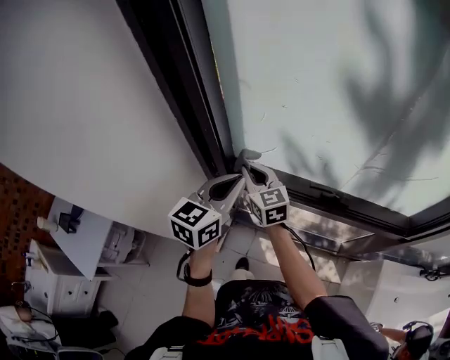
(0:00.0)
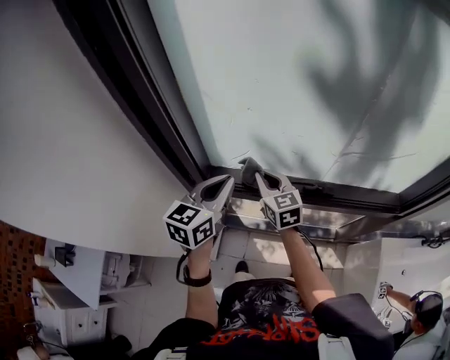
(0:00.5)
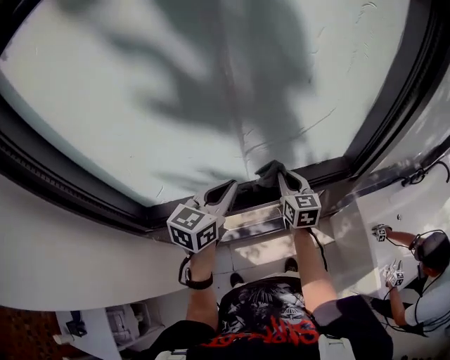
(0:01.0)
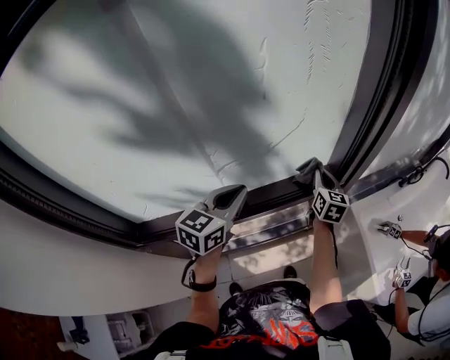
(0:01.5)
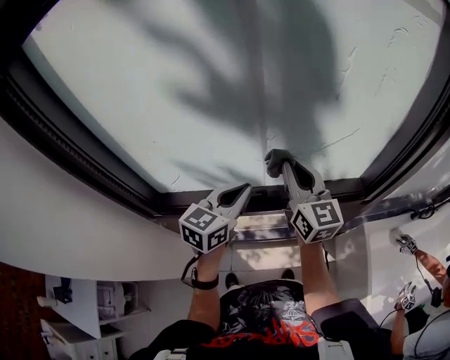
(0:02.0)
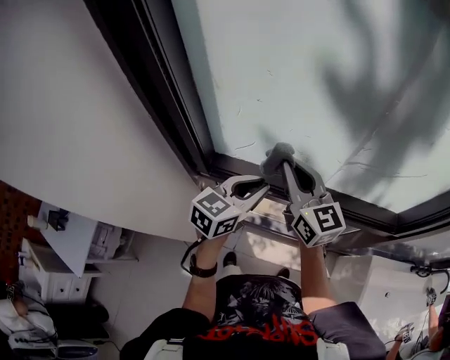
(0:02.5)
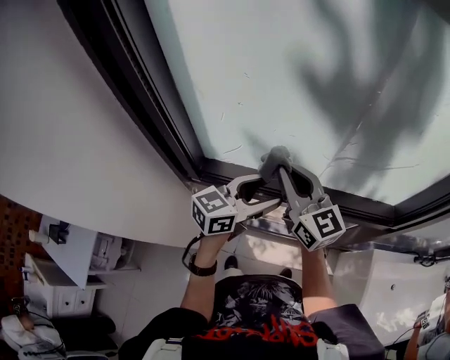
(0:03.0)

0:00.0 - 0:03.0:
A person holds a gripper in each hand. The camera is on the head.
0:00.0 - 0:01.5: The left gripper ends up about 40 cm from where it was, and swivels roughly 40 degrees. The right gripper moves some 70 cm, and swivels roughly 60 degrees.
0:01.5 - 0:03.0: The right gripper changes place by approximately 50 cm, and swivels roughly 60 degrees. The left gripper changes place by approximately 20 cm, and opens up.

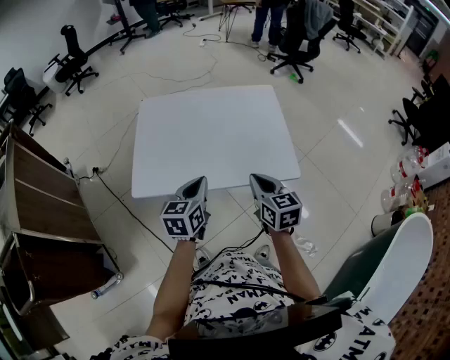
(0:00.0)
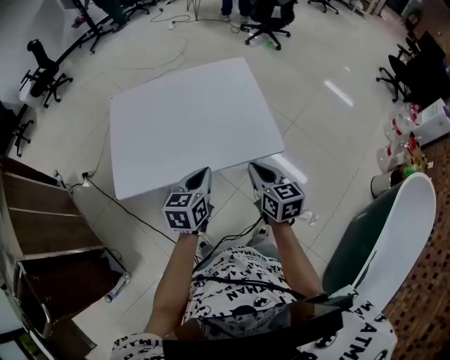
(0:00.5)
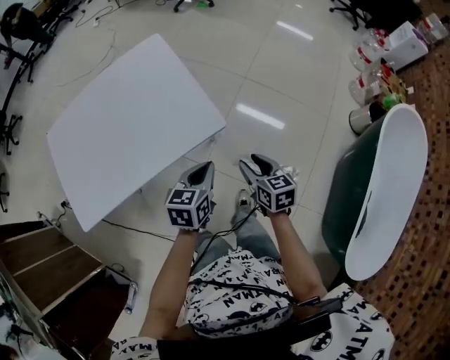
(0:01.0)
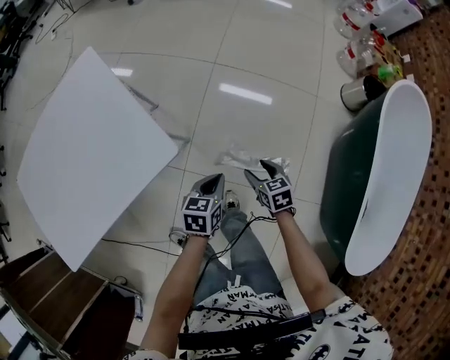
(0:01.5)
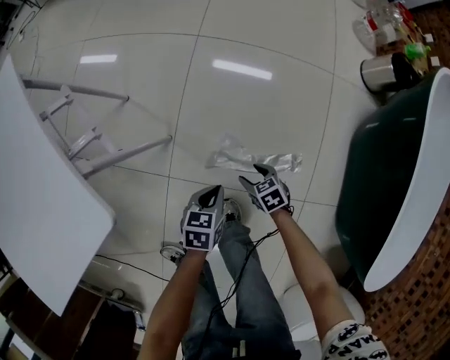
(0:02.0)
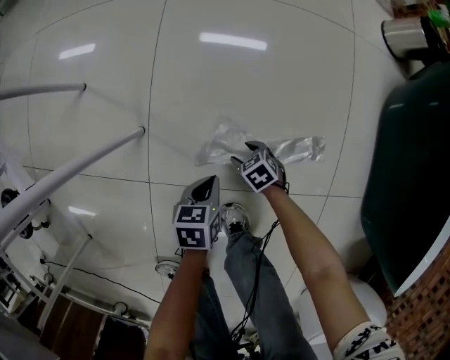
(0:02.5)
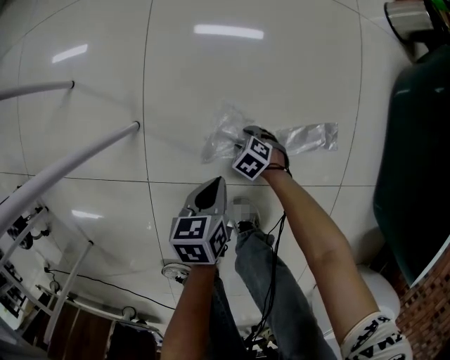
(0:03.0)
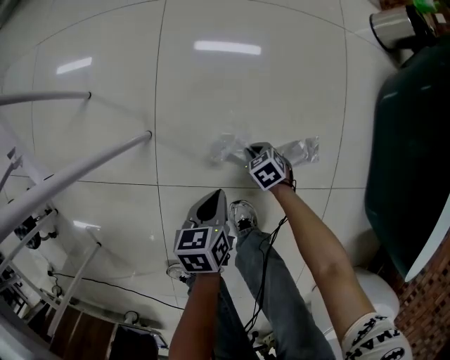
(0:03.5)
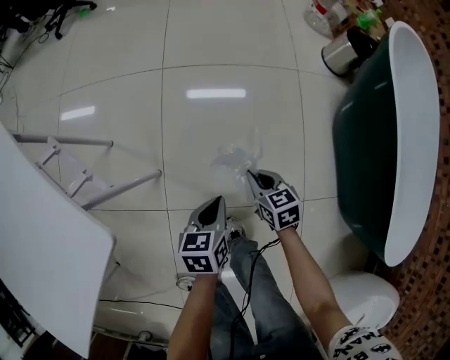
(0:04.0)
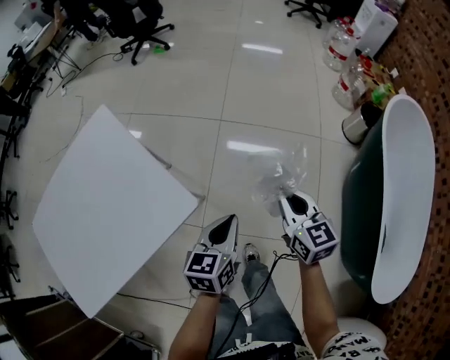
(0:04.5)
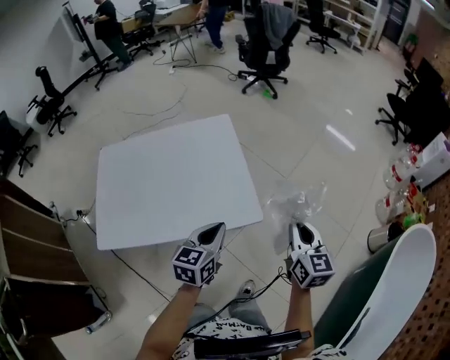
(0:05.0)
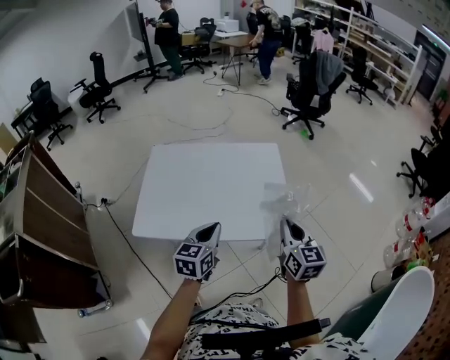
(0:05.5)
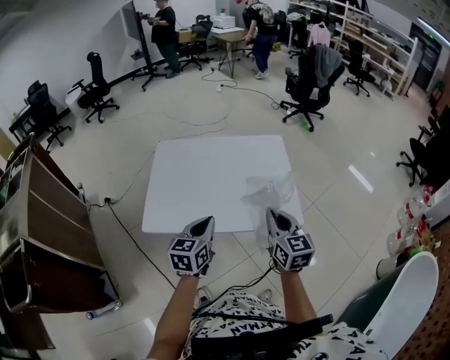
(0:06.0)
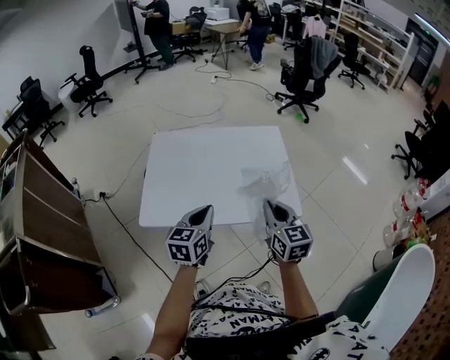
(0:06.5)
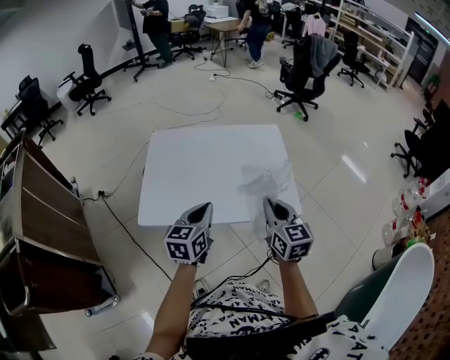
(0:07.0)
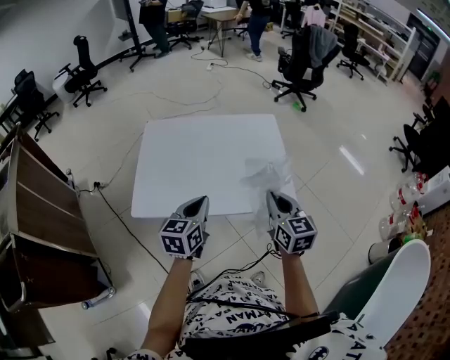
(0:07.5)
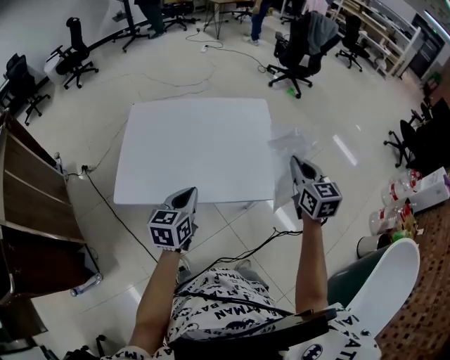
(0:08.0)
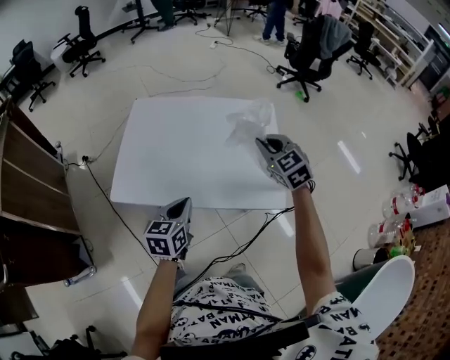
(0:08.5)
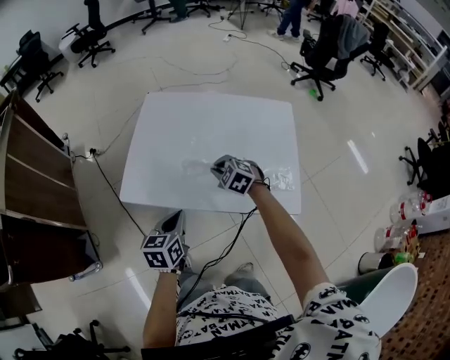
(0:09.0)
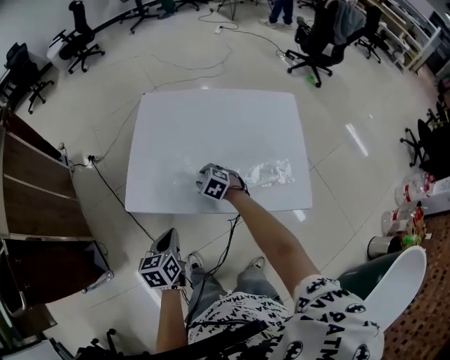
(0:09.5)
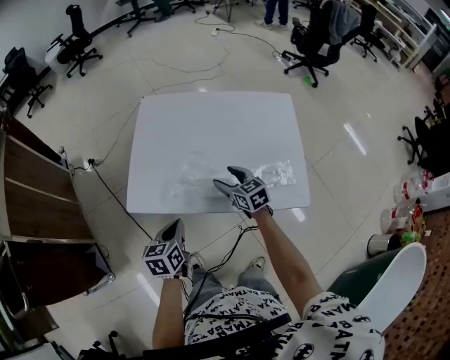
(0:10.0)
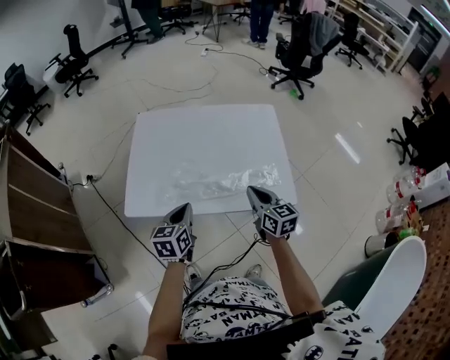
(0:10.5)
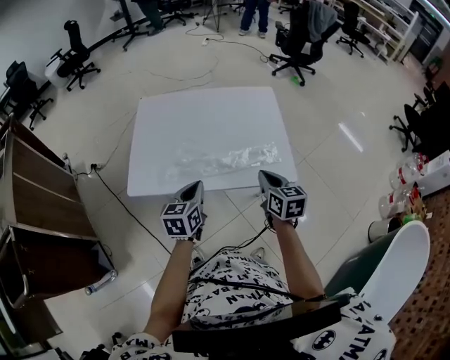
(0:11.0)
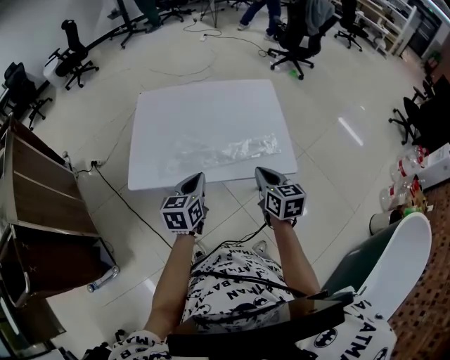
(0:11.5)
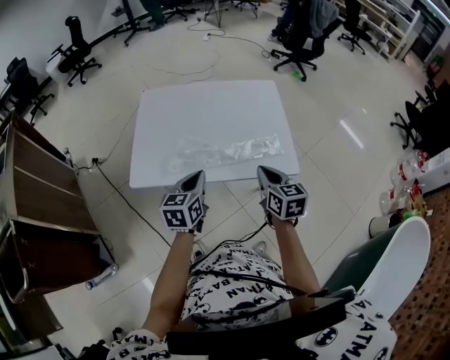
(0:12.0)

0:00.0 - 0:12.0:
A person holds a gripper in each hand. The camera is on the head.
0:00.0 - 0:02.0: The pair of grippers is taken about 50 cm. The two grippers go some 60 cm downward. The right gripper angles its fingers downward, by approximately 40 degrees, and opens its fingers. The left gripper tips its fingers downward by some 30 degrees.
0:02.0 - 0:04.0: The left gripper goes downward and returns, some 25 cm each way. The right gripper goes downward and returns, roughly 35 cm each way, swivels approximately 30 degrees, and closes.
0:04.0 - 0:06.0: The two grippers travel together, some 50 cm. The right gripper travels upward by about 60 cm, and tilts its fingers roughly 30 degrees upward, while the left gripper changes its angle by approximately 60 degrees.
0:06.0 - 0:08.0: The right gripper shifts approximately 15 cm to the right and forward.
0:08.0 - 0:10.0: The right gripper changes place by approximately 40 cm, changes its angle by about 30 degrees, and opens. The left gripper moves some 20 cm, and turns by some 20 degrees.
0:10.0 - 0:12.0: The right gripper heads backward, upward and to the right, covering approximately 25 cm, turns by some 30 degrees, and closes; the left gripper heads to the right and upward, covering some 15 cm.

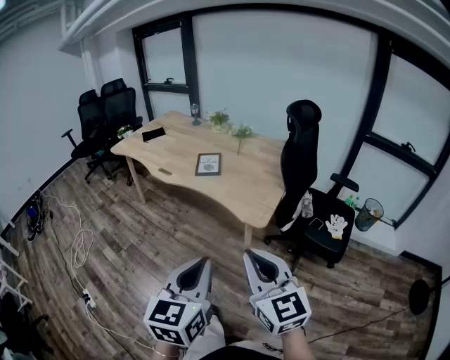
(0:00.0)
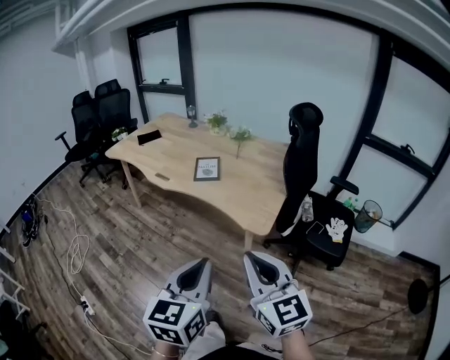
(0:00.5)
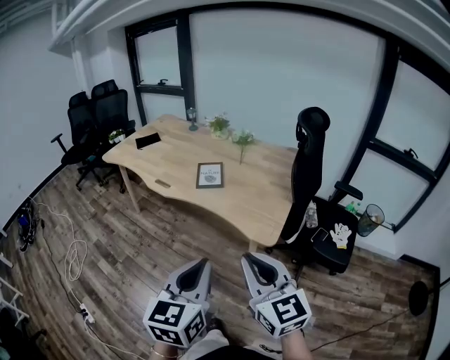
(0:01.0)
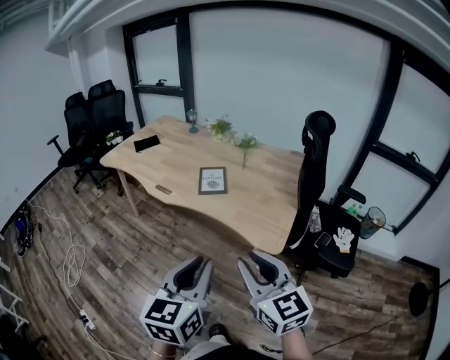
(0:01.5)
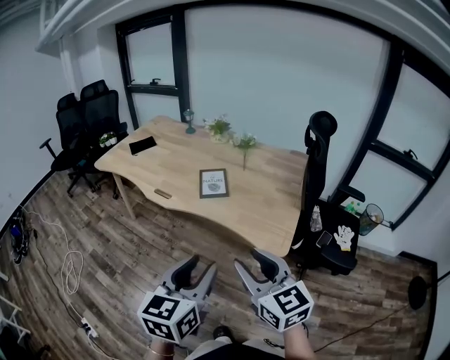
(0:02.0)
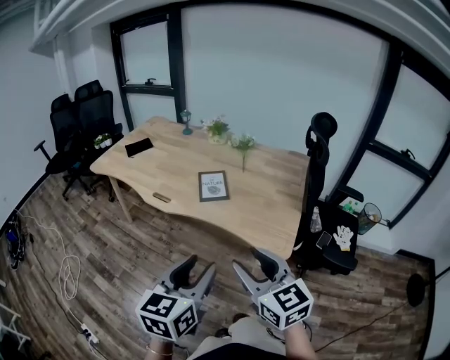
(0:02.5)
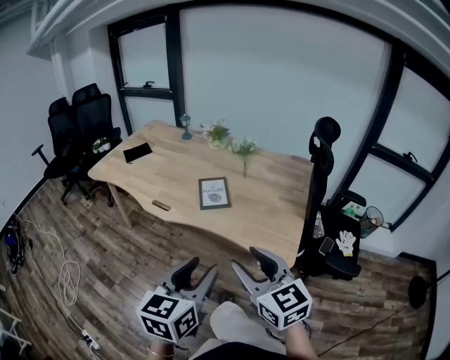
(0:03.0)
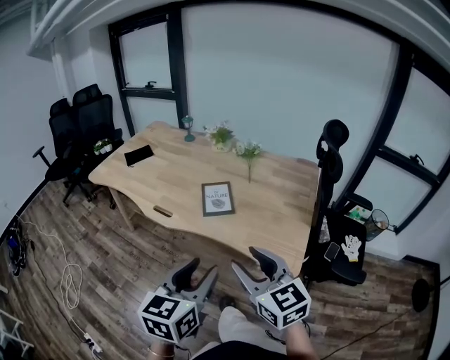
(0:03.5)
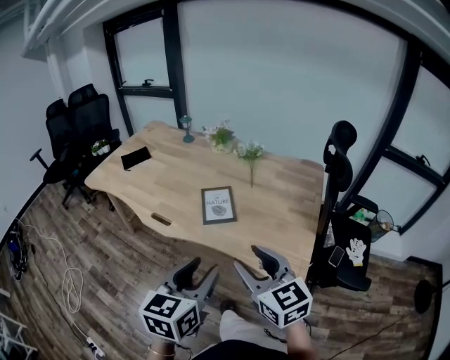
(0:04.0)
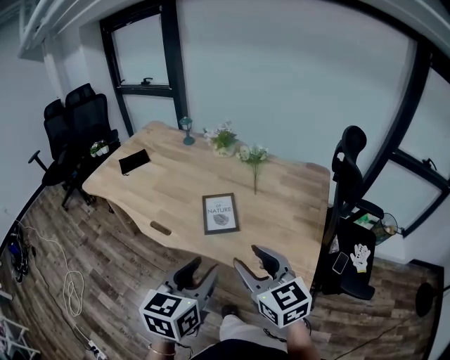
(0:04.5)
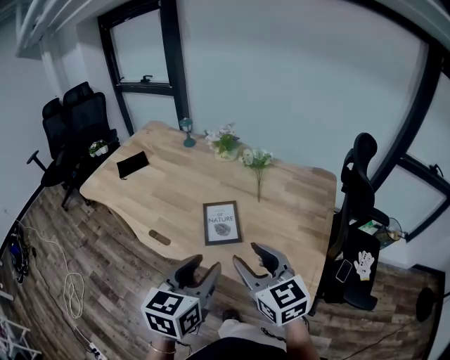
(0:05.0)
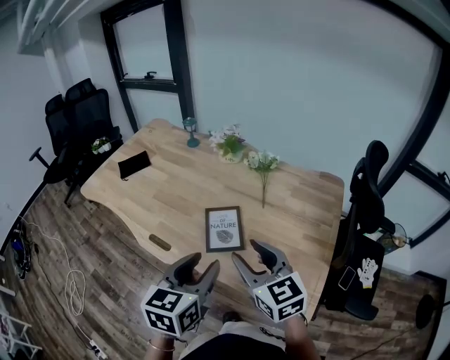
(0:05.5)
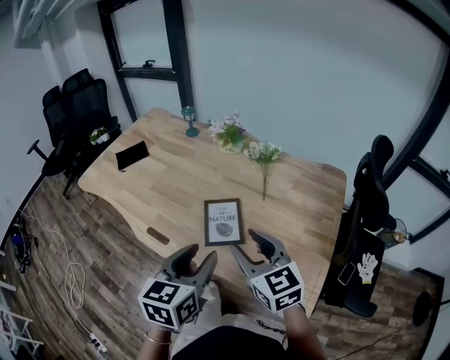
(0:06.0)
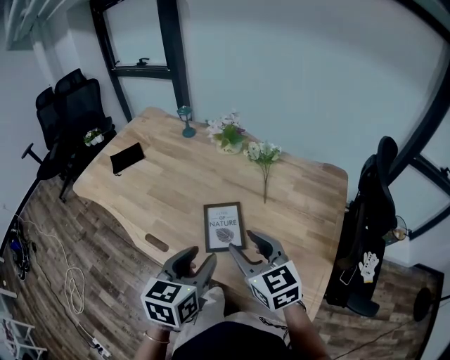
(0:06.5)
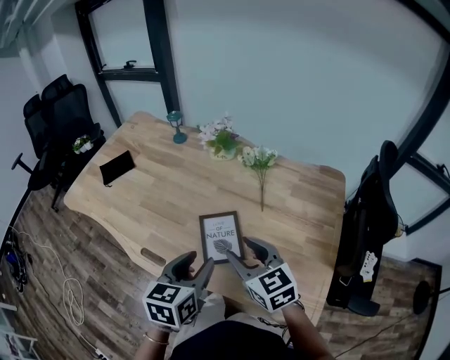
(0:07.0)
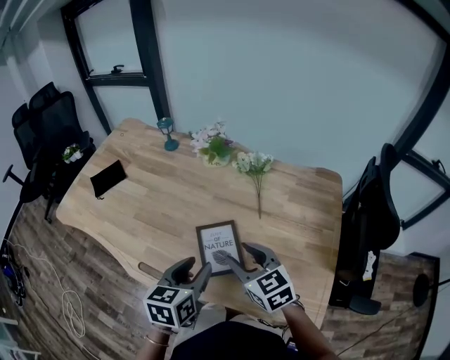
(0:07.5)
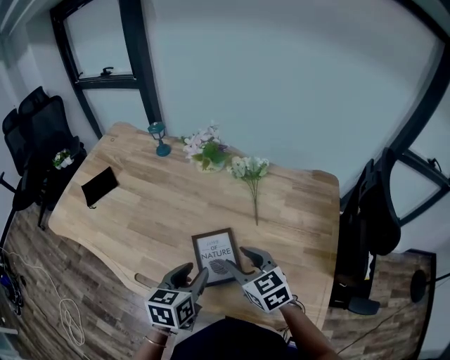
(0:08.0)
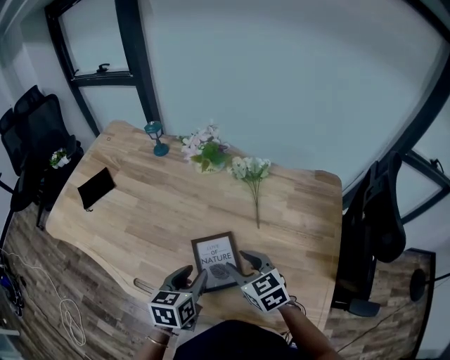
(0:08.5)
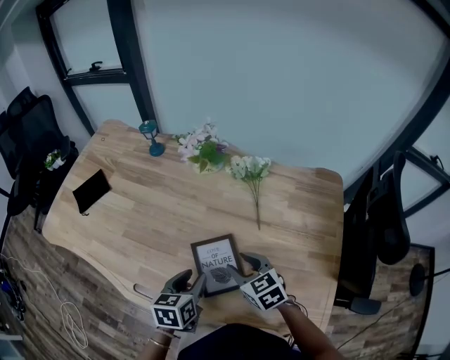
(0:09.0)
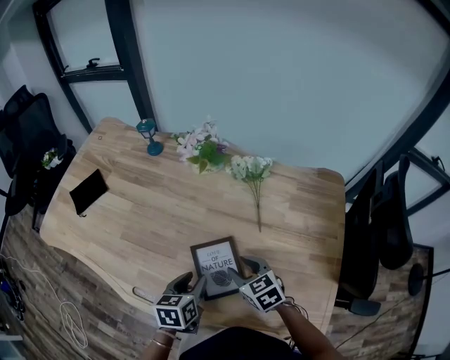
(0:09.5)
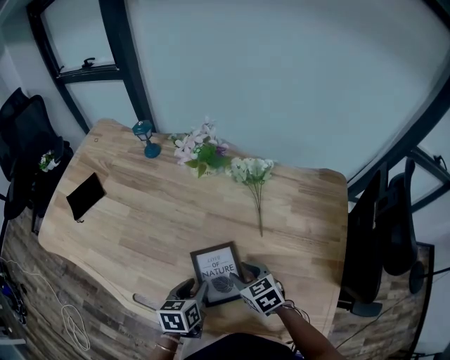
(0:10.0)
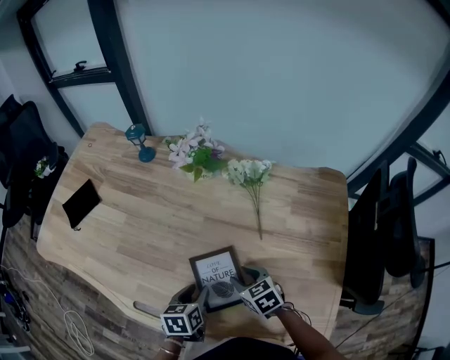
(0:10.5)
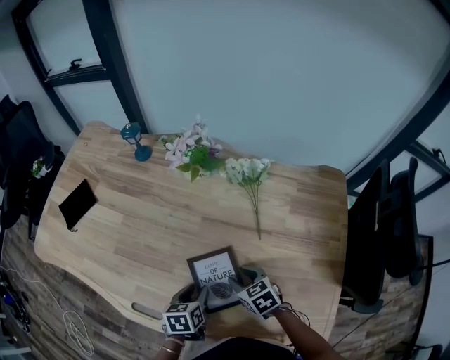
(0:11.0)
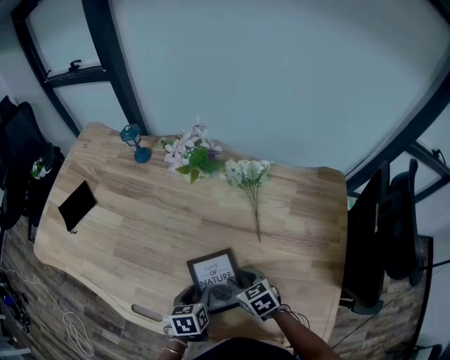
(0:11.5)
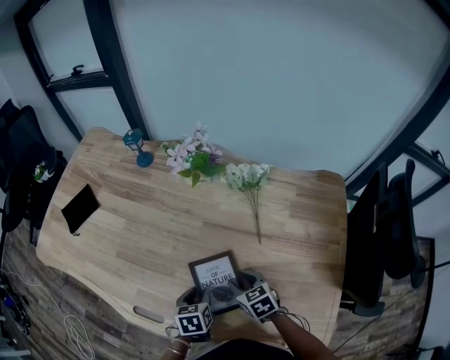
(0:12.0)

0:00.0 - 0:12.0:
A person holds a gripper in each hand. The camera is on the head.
0:00.0 - 0:02.0: Both grippers travel together forward and to the left, roughly 20 cm. The left gripper opens up, while the right gripper opens.
0:02.0 - 0:04.0: Both grippers move forward, about 20 cm.
0:04.0 - 0:06.0: The two grippers go some 20 cm forward.
0:06.0 - 0:08.0: Both grippers travel together forward and downward, about 20 cm.
0:08.0 - 0:10.0: The grippers both shift downward by some 15 cm.
0:10.0 - 0:12.0: The left gripper travels downward by approximately 5 cm.
